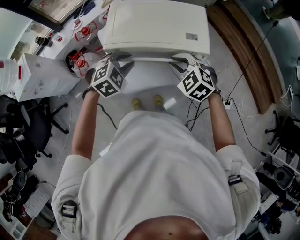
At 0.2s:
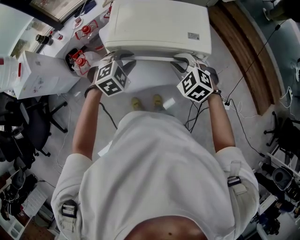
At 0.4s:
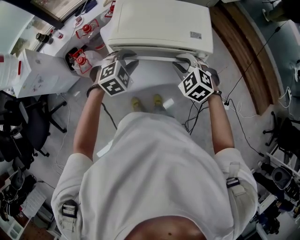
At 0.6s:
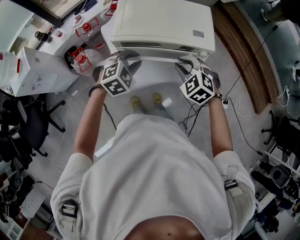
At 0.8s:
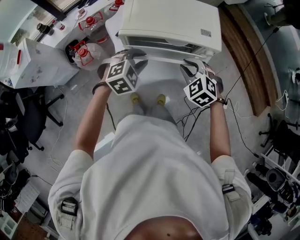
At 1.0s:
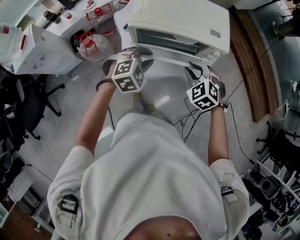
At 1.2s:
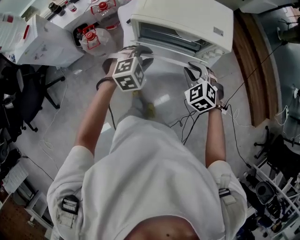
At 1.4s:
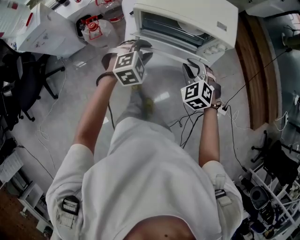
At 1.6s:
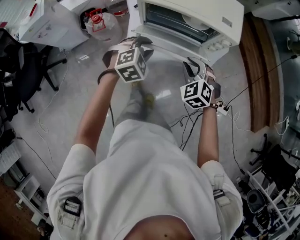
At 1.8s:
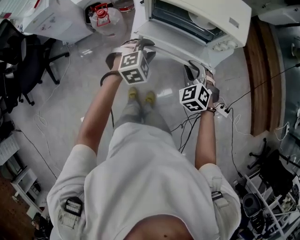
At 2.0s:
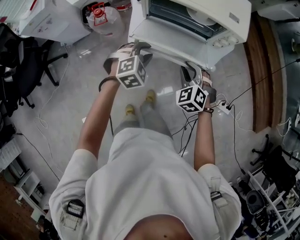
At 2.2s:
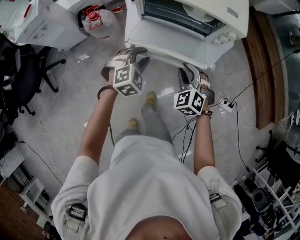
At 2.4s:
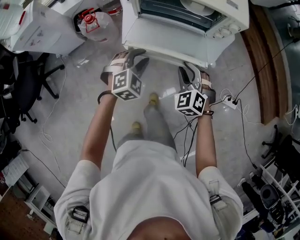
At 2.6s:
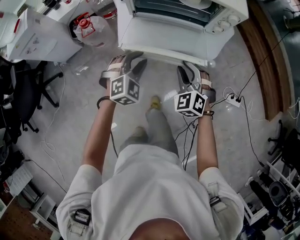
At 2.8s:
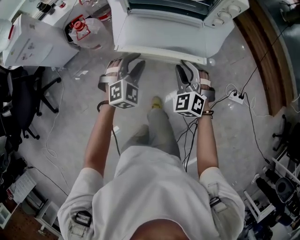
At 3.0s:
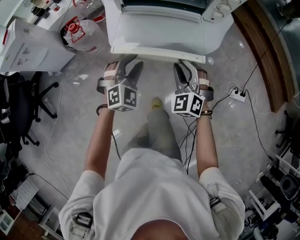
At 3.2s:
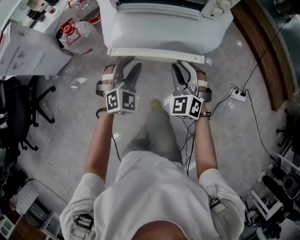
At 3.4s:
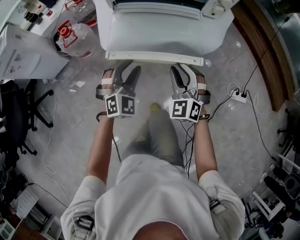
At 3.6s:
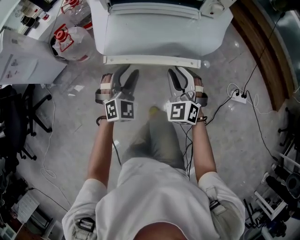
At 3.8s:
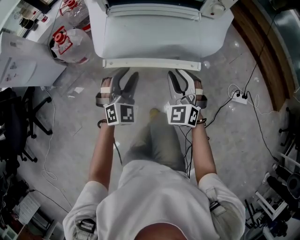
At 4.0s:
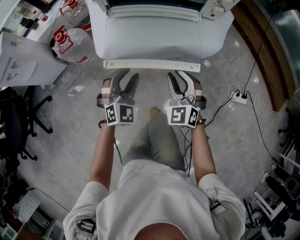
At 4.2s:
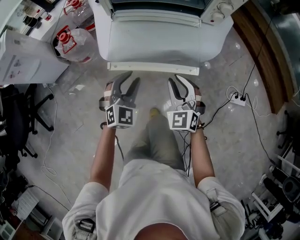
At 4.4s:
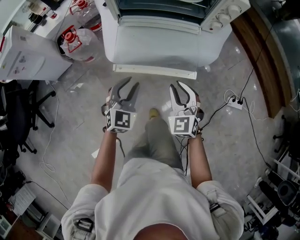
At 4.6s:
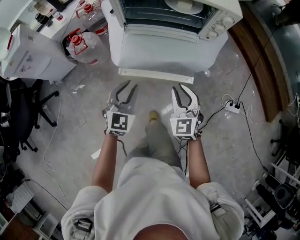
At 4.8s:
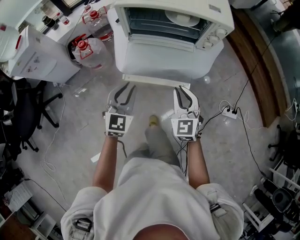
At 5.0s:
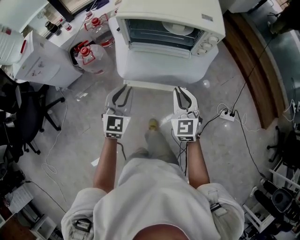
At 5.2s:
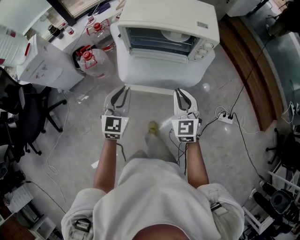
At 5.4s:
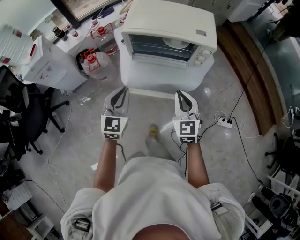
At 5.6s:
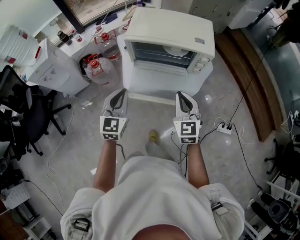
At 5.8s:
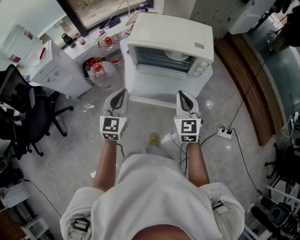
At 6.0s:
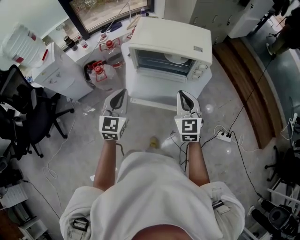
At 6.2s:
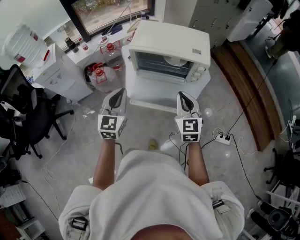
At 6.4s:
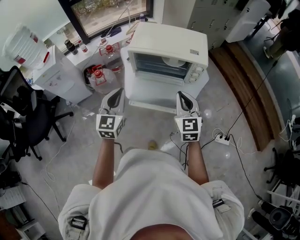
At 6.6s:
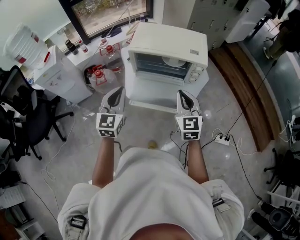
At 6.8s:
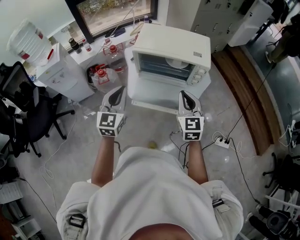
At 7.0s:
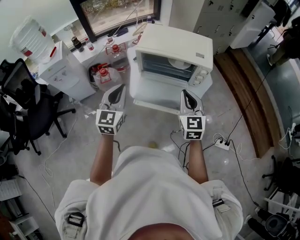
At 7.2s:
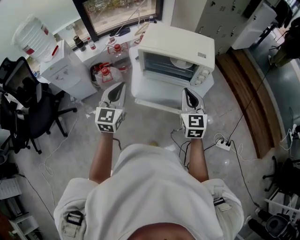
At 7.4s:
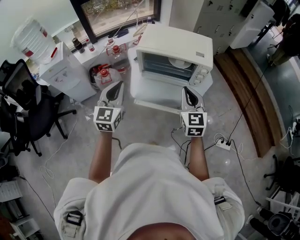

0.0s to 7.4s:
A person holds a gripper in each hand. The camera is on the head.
0.0s to 1.4s: The left gripper is displaced backward by about 10 cm. The right gripper is displaced backward and downward by approximately 10 cm.
1.4s to 3.0s: Both grippers move downward and backward, about 20 cm. The left gripper turns by some 20 degrees.
3.0s to 4.4s: The right gripper travels downward and back again, some 10 cm each way, while the left gripper travels downward and back again, about 10 cm each way, and swivels about 20 degrees.
4.4s to 6.0s: Both grippers travel together upward, about 35 cm. The right gripper closes up, while the left gripper changes its angle by approximately 30 degrees, and closes up.
6.0s to 7.4s: The left gripper ends up approximately 5 cm from where it was.

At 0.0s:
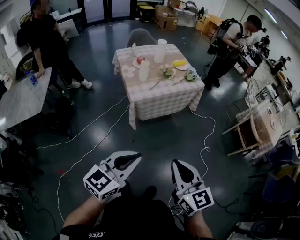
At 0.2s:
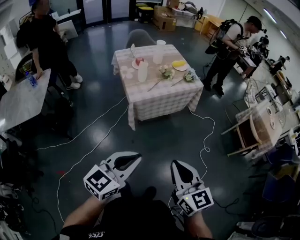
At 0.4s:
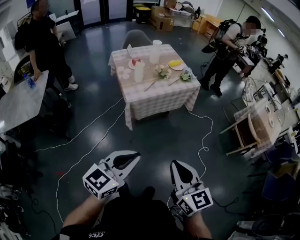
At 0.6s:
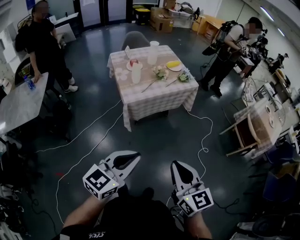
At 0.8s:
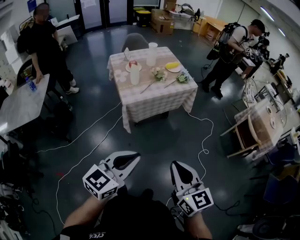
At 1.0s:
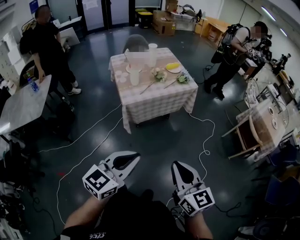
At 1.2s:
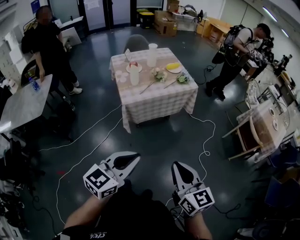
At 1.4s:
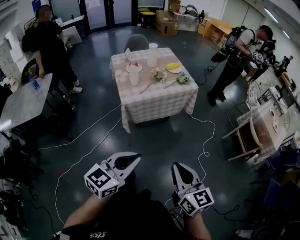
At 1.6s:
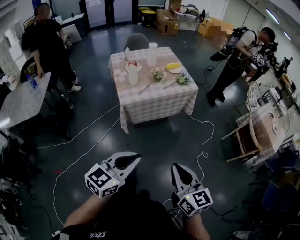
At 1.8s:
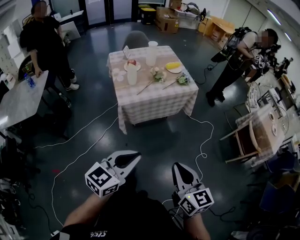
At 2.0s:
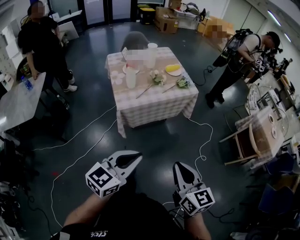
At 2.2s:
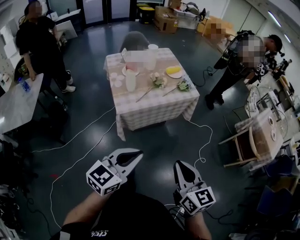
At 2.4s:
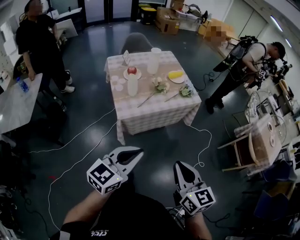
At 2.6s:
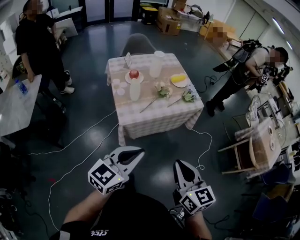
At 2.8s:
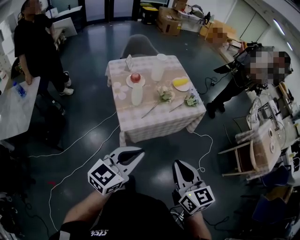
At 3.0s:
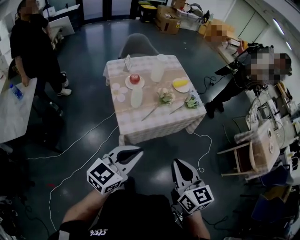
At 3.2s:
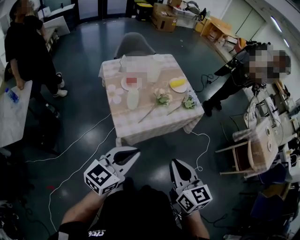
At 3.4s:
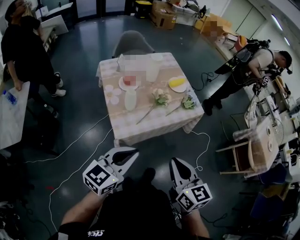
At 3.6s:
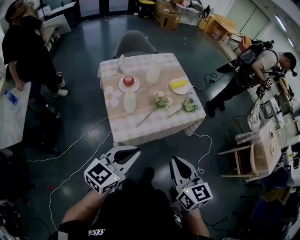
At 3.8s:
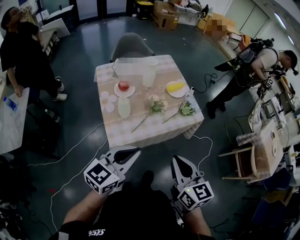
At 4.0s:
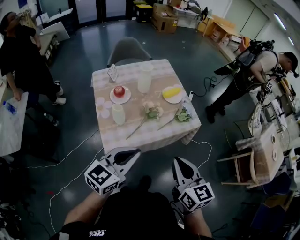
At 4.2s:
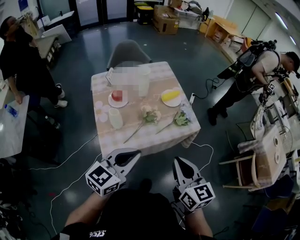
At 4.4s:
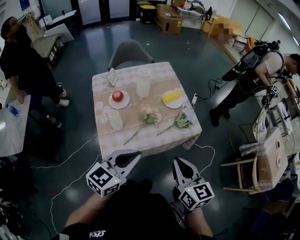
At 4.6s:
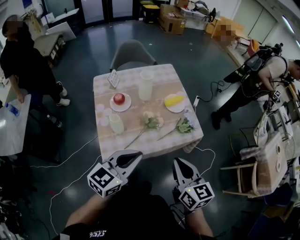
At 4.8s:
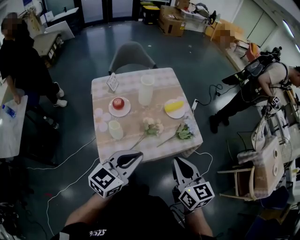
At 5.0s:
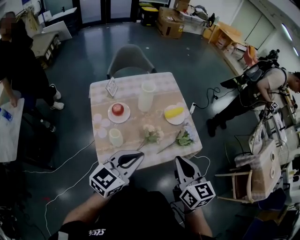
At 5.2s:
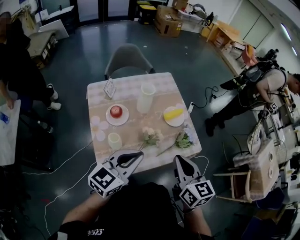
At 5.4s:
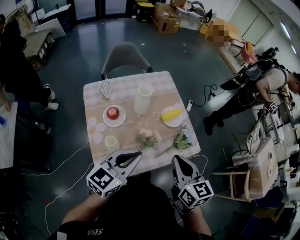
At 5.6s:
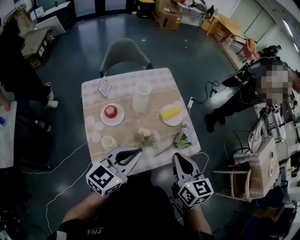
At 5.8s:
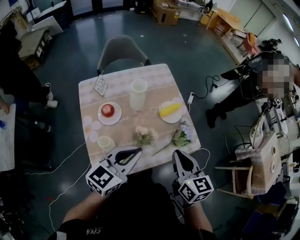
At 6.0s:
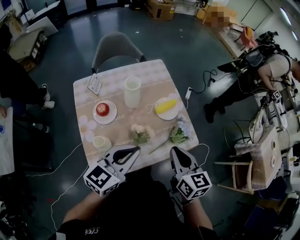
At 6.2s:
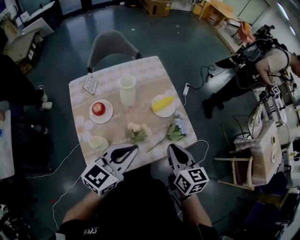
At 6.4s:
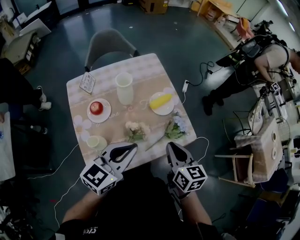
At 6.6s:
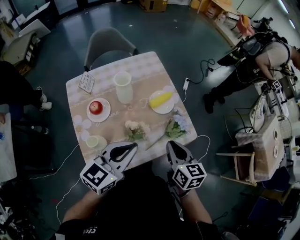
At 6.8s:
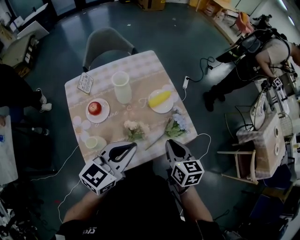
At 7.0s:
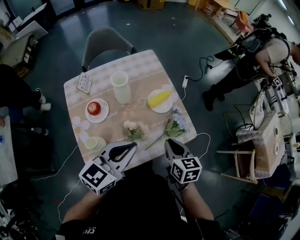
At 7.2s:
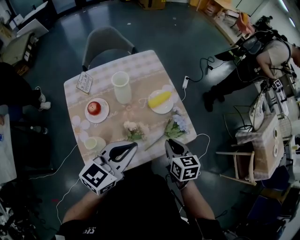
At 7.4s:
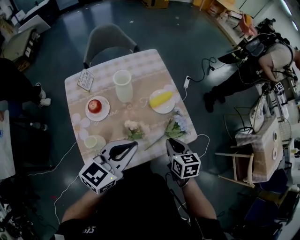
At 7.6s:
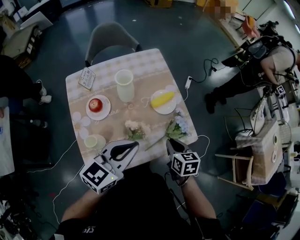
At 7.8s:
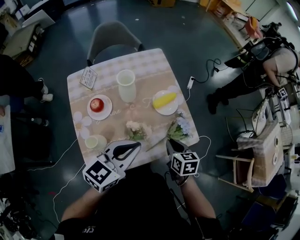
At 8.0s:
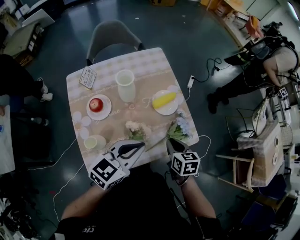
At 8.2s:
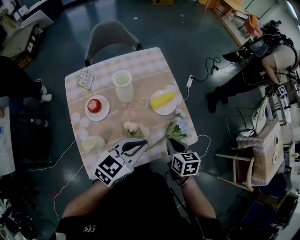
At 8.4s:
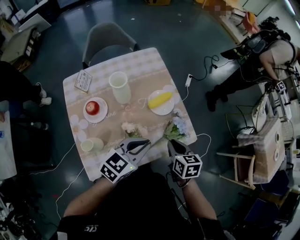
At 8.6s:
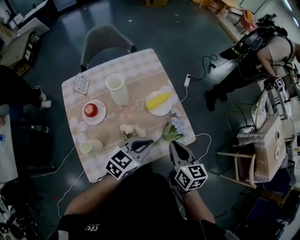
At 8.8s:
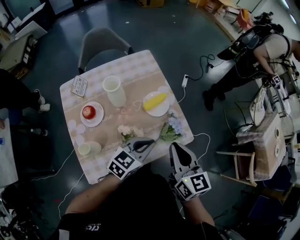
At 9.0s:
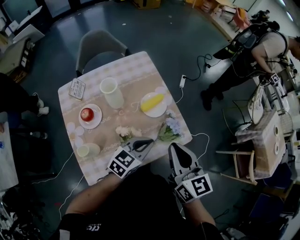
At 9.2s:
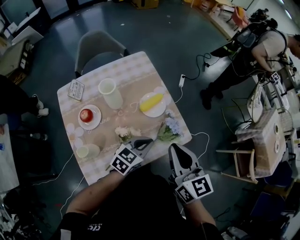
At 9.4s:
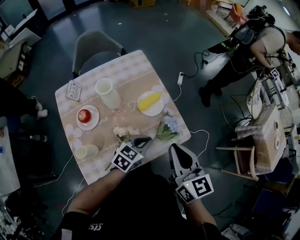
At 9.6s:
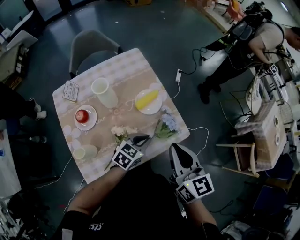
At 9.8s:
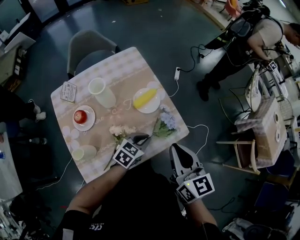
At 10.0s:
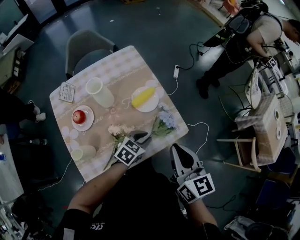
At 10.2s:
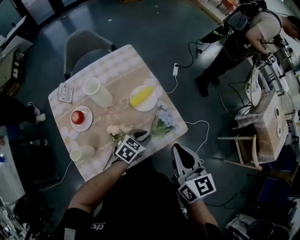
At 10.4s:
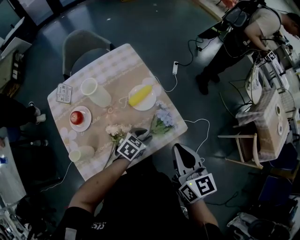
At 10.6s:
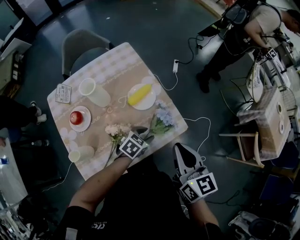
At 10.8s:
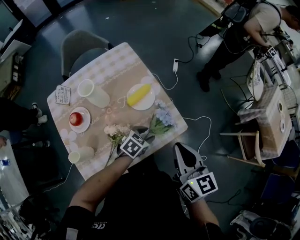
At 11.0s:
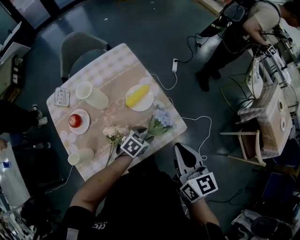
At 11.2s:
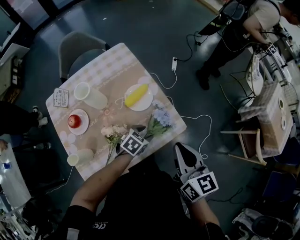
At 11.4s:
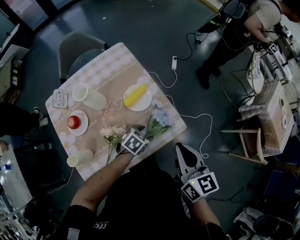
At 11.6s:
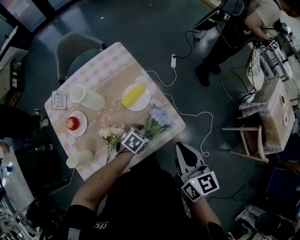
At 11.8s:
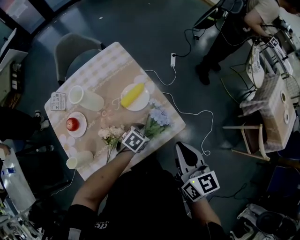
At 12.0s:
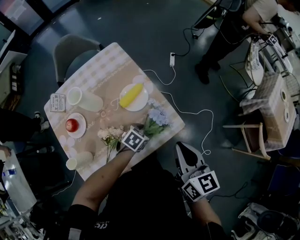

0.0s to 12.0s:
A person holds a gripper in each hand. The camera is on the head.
0.0s to 1.6s: Both grippers travel together to the right, some 10 cm.
1.6s to 3.0s: The two grippers go roughly 30 cm forward and to the left.
3.0s to 4.4s: Both grippers travel together forward and to the right, approximately 25 cm.
4.4s to 6.0s: Both grippers move forward, about 20 cm.
6.0s to 7.6s: The right gripper heads downward, covering about 15 cm, and swivels roughly 20 degrees.
7.6s to 9.0s: The right gripper travels upward by some 20 cm, and angles its fingers upward, by some 30 degrees, while the left gripper heads downward, to the right and forward, covering about 15 cm.
9.0s to 10.4s: The right gripper heads to the right, covering roughly 5 cm; the left gripper travels downward by about 15 cm, and changes its angle by some 20 degrees.
10.4s to 12.0s: The right gripper moves approximately 5 cm; the left gripper is displaced downward by about 5 cm, and opens.

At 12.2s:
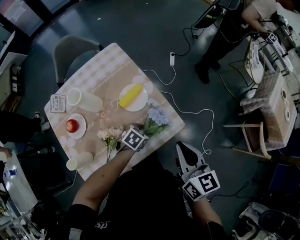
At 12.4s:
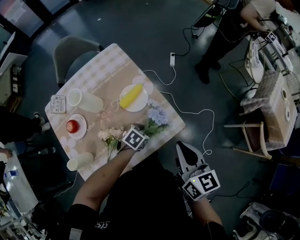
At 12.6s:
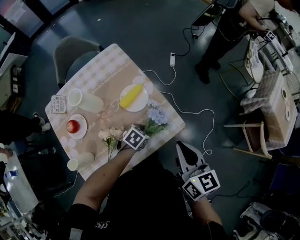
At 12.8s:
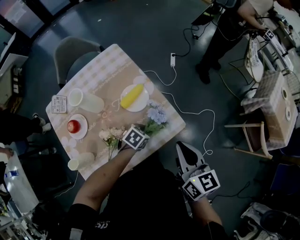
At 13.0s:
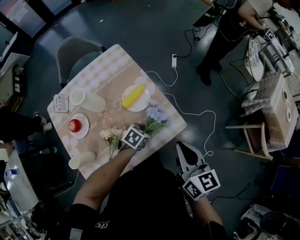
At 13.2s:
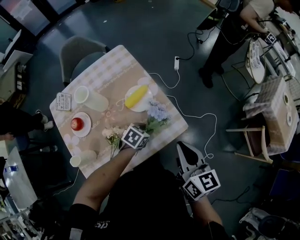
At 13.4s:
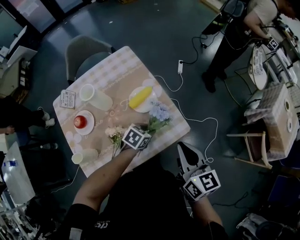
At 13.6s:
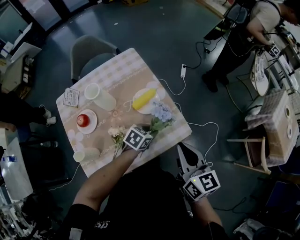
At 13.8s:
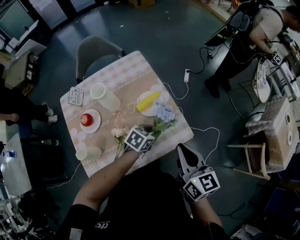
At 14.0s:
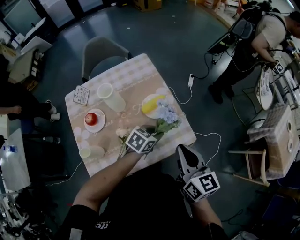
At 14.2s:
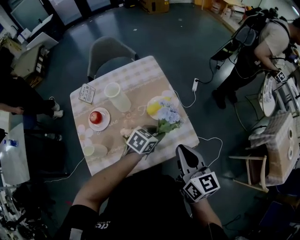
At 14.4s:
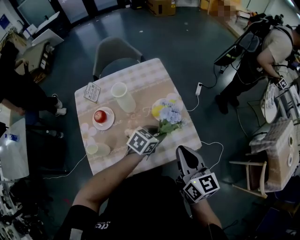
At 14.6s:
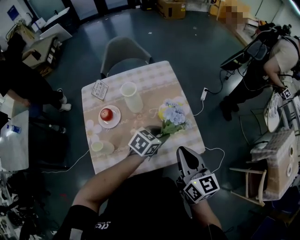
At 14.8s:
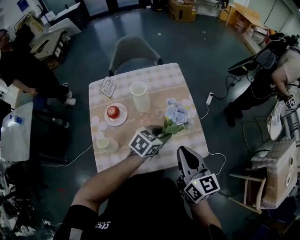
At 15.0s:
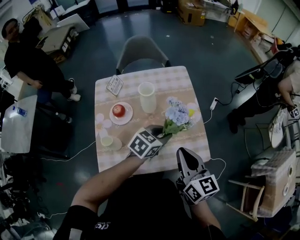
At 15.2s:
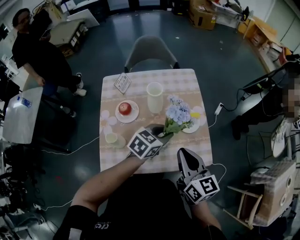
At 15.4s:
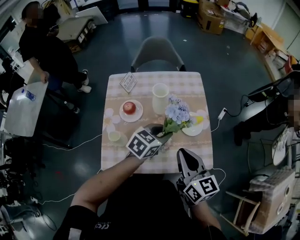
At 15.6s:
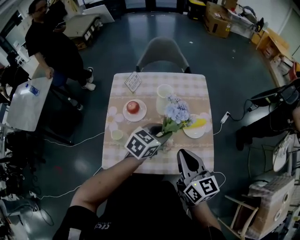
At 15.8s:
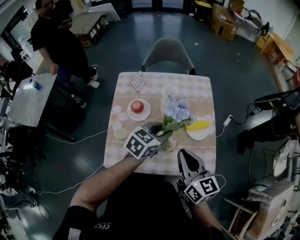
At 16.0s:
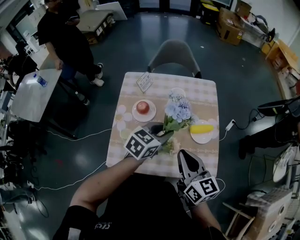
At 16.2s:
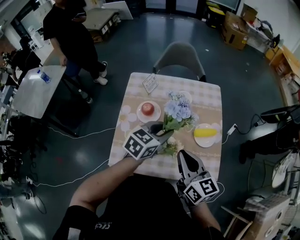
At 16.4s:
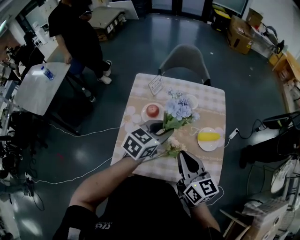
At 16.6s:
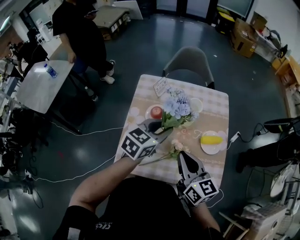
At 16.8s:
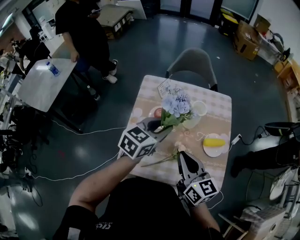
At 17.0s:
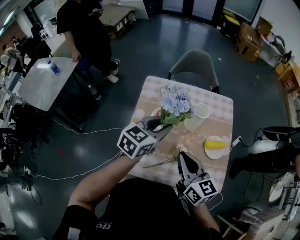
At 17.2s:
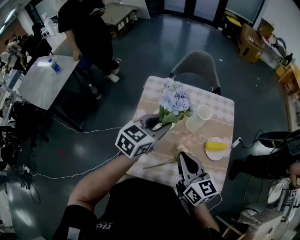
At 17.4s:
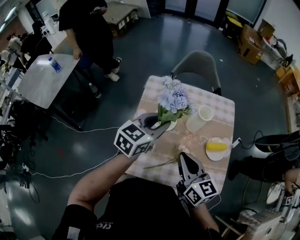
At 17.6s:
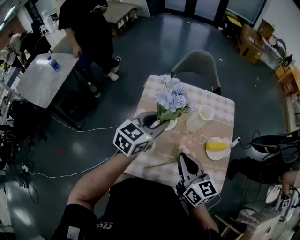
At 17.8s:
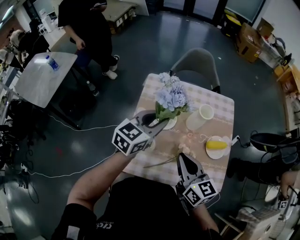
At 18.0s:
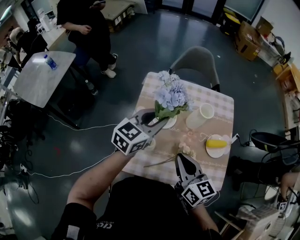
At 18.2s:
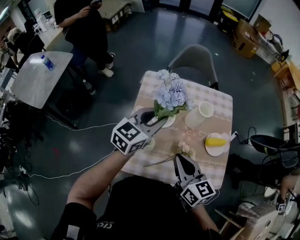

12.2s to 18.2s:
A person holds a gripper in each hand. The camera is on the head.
12.2s to 13.8s: The left gripper shifts about 10 cm upward.
13.8s to 15.2s: The left gripper goes roughly 20 cm upward and to the left, and changes its angle by some 20 degrees. The right gripper heads to the left, covering roughly 15 cm, and turns by some 20 degrees.
15.2s to 16.6s: The left gripper travels to the left and upward by roughly 20 cm, and changes its angle by approximately 20 degrees. Meanwhile the right gripper moves to the left, approximately 15 cm.
16.6s to 18.2s: Both grippers travel together to the left, approximately 10 cm.
